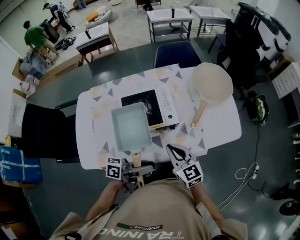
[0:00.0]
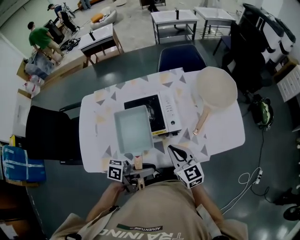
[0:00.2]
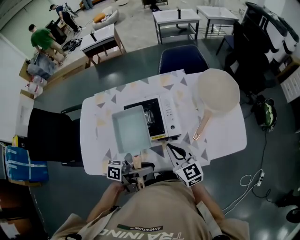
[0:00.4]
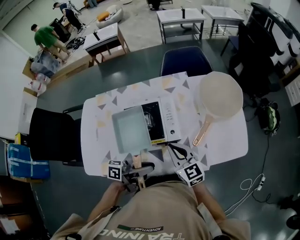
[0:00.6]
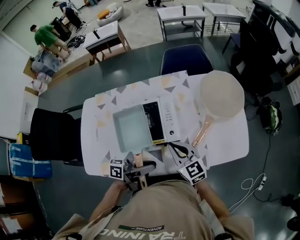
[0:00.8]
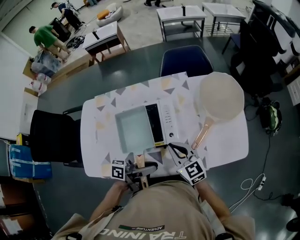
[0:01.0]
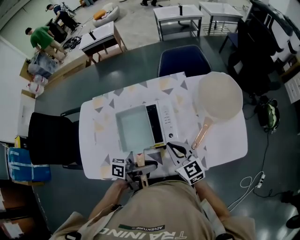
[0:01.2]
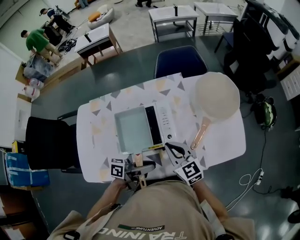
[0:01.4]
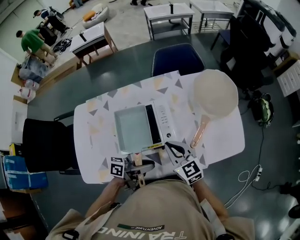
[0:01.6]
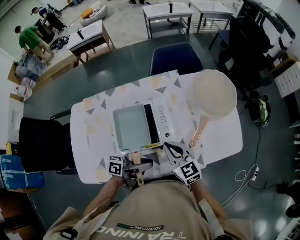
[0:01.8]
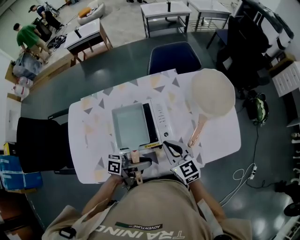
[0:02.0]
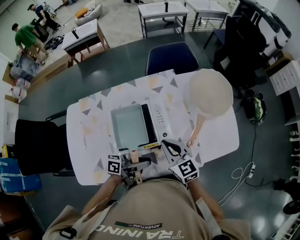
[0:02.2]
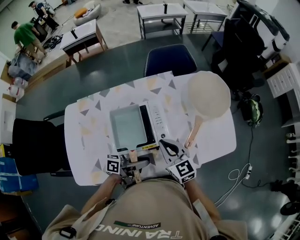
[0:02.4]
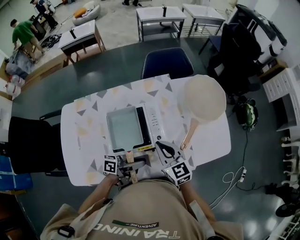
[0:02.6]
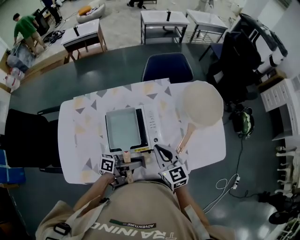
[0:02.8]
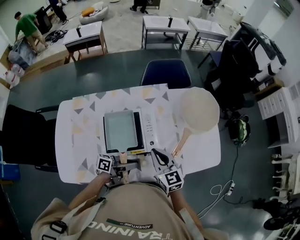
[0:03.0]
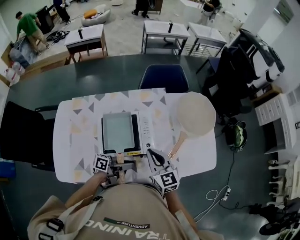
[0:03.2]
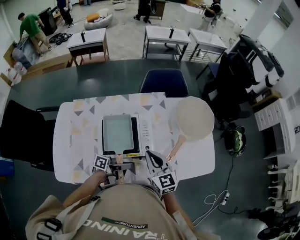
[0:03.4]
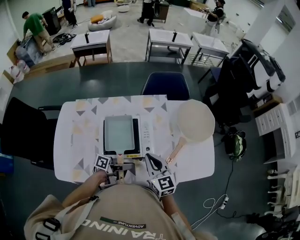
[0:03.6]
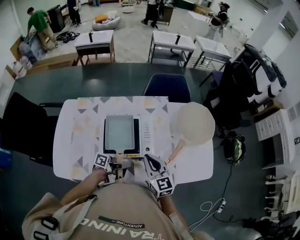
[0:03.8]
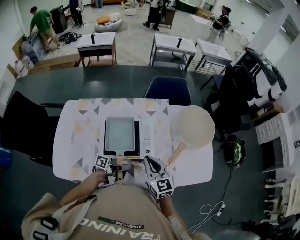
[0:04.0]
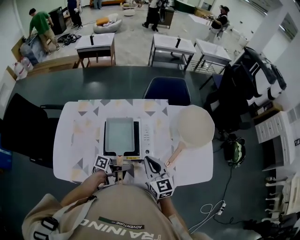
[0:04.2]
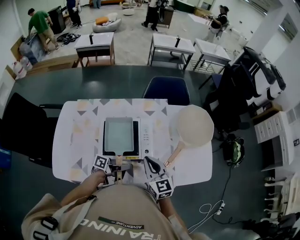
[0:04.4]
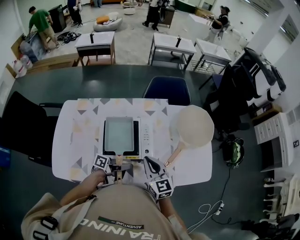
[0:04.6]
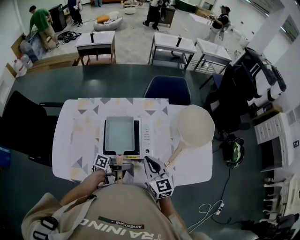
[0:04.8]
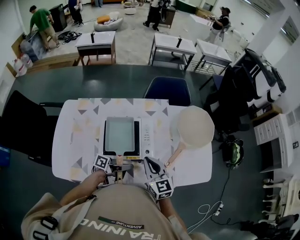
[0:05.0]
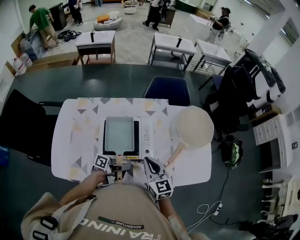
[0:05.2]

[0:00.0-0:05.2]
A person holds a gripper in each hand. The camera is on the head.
0:00.0 to 0:01.8: The right gripper changes place by about 10 cm.

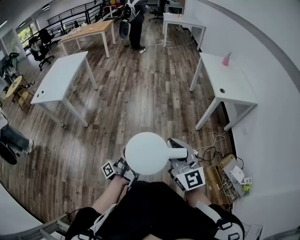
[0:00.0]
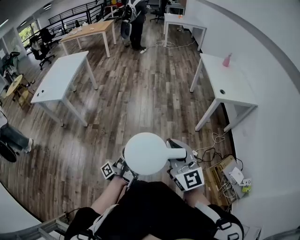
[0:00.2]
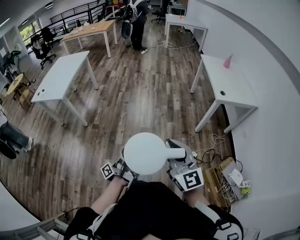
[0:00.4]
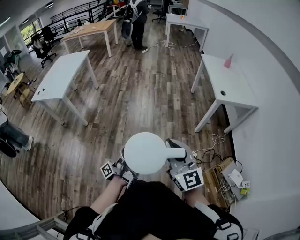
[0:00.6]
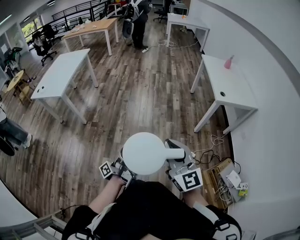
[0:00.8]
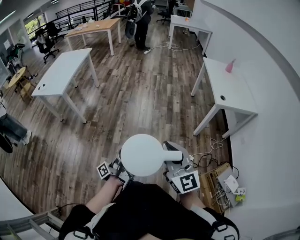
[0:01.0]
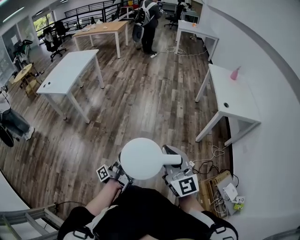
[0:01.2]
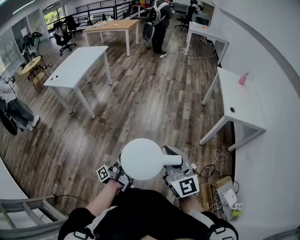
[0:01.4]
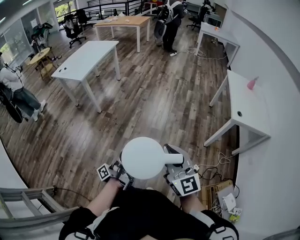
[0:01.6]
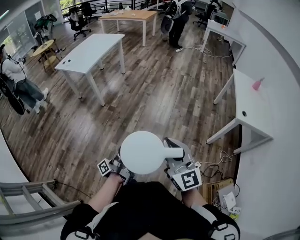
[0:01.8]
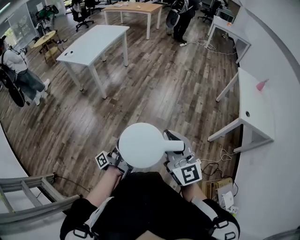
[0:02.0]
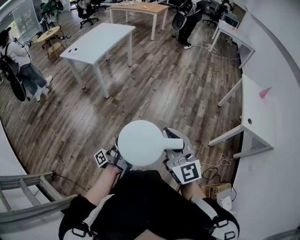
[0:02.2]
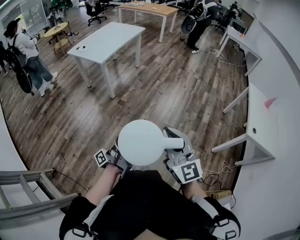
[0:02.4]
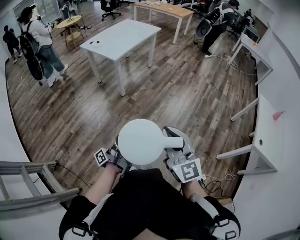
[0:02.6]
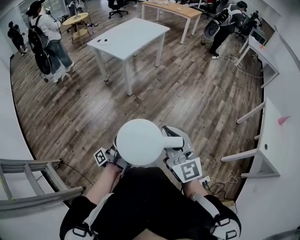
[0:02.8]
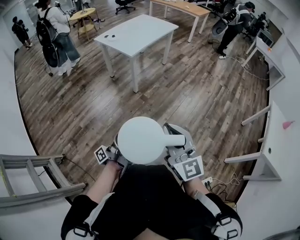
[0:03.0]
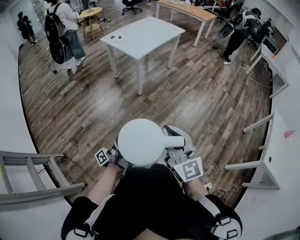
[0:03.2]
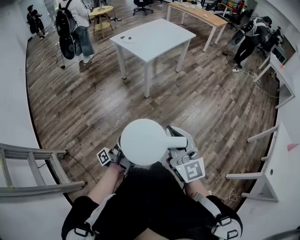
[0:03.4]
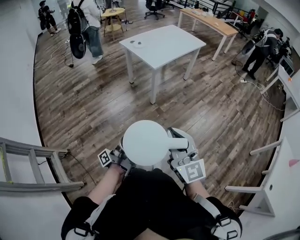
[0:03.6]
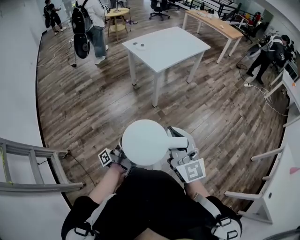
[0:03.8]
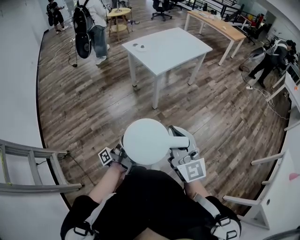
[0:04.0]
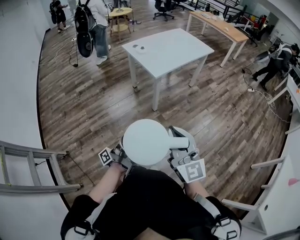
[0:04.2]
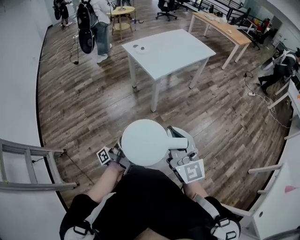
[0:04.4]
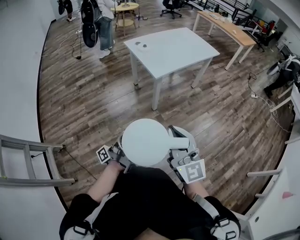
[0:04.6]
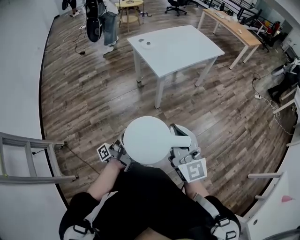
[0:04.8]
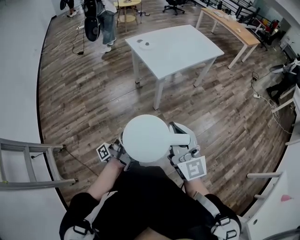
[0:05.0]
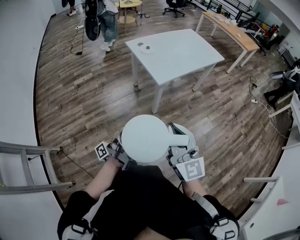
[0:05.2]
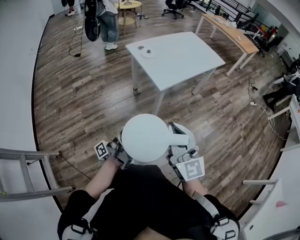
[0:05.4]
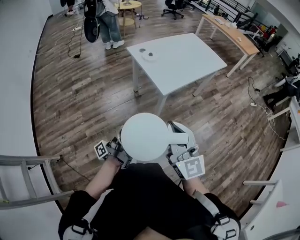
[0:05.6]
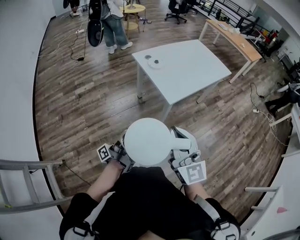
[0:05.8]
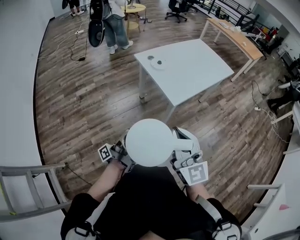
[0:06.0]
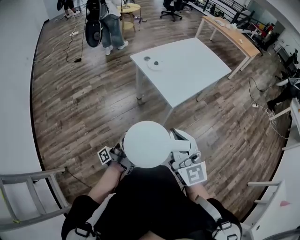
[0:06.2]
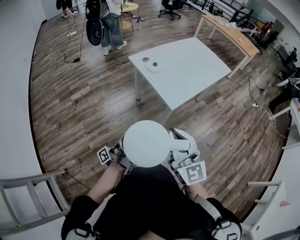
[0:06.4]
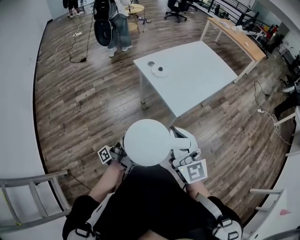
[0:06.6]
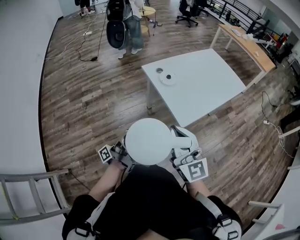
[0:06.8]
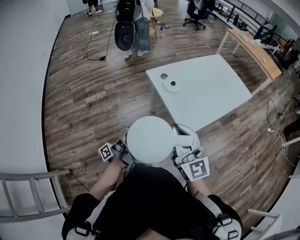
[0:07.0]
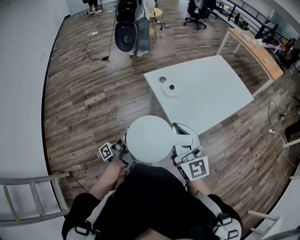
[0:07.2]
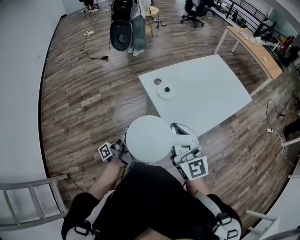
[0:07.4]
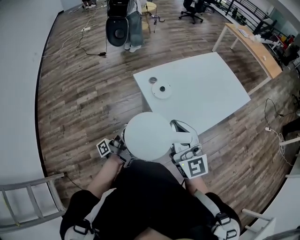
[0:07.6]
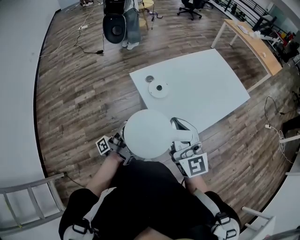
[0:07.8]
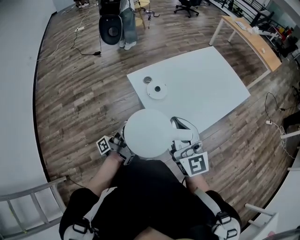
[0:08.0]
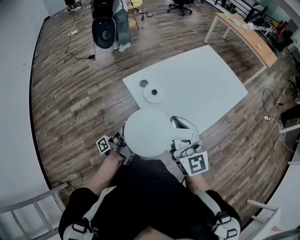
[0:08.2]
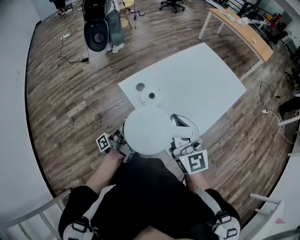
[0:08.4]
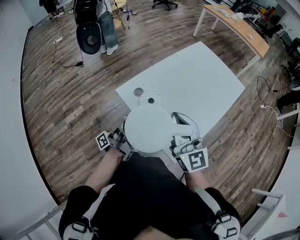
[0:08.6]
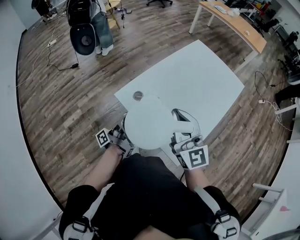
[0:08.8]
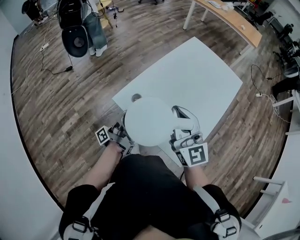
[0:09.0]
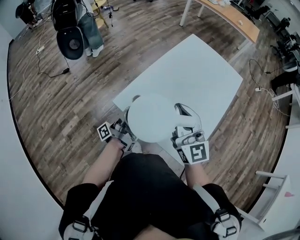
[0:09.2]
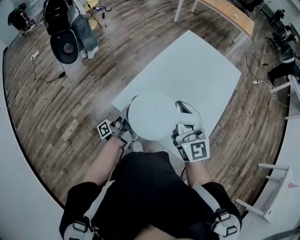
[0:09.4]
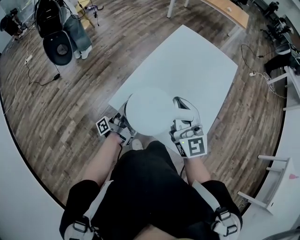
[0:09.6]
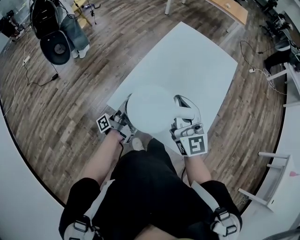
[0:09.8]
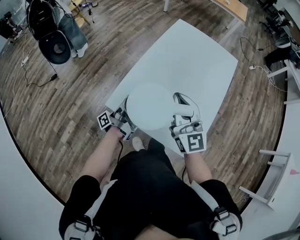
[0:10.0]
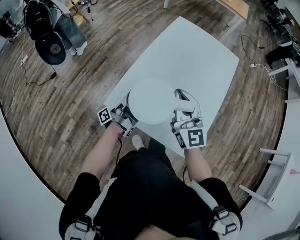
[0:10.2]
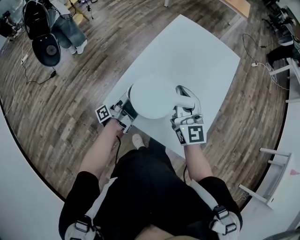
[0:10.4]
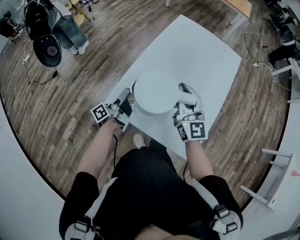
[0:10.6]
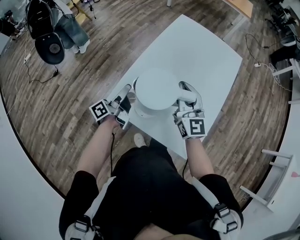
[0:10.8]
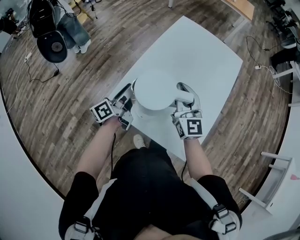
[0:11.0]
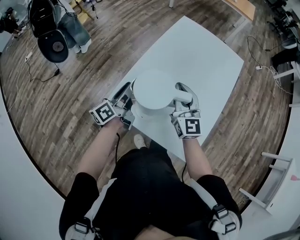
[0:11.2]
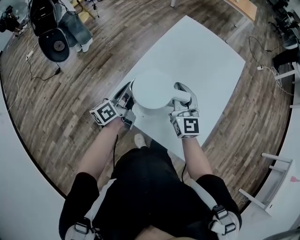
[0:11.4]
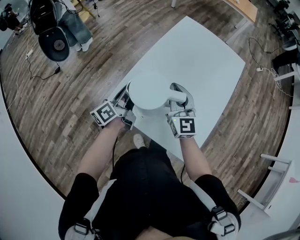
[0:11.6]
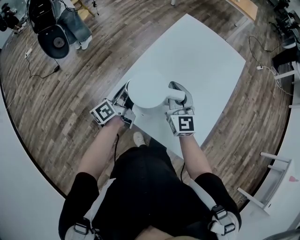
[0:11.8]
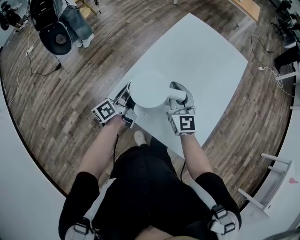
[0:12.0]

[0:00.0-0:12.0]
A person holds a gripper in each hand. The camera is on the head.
0:01.6 to 0:03.0: The right gripper changes place by roughly 30 cm, and turns by some 20 degrees.
0:03.0 to 0:04.4: The right gripper ends up about 25 cm from where it was.
0:04.4 to 0:06.0: The right gripper ends up about 25 cm from where it was.
0:06.0 to 0:07.6: The right gripper ends up approximately 30 cm from where it was.
0:07.6 to 0:09.0: The right gripper shifts by some 20 cm, and rotates approximately 20 degrees.
0:09.0 to 0:10.4: The right gripper moves roughly 15 cm.
0:10.4 to 0:12.0: The right gripper shifts roughly 10 cm downward.

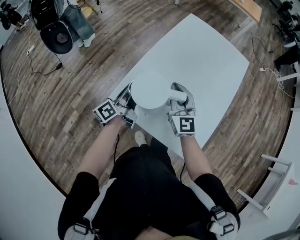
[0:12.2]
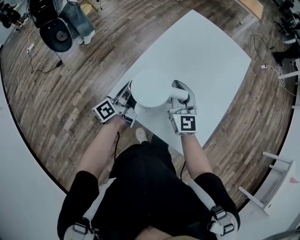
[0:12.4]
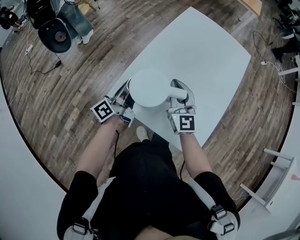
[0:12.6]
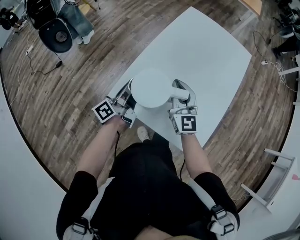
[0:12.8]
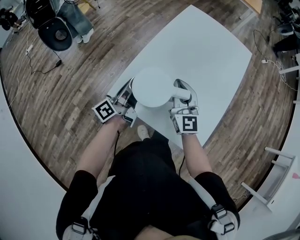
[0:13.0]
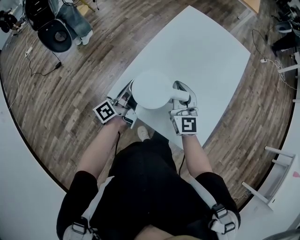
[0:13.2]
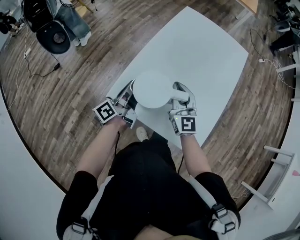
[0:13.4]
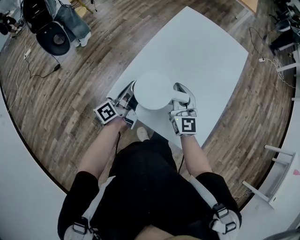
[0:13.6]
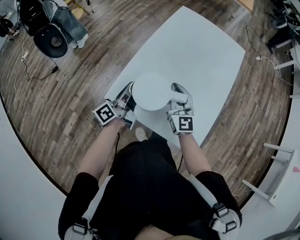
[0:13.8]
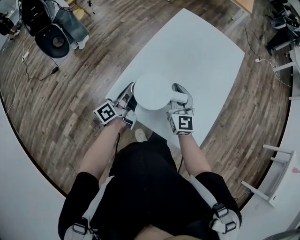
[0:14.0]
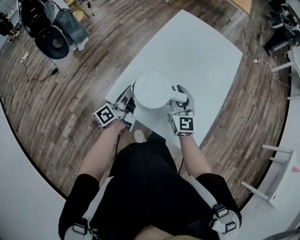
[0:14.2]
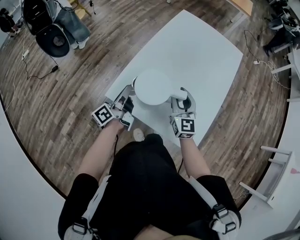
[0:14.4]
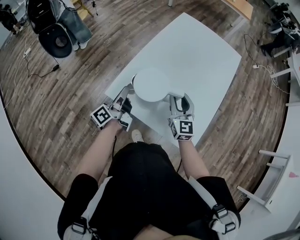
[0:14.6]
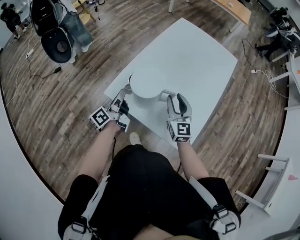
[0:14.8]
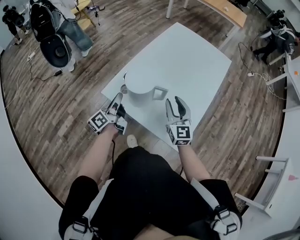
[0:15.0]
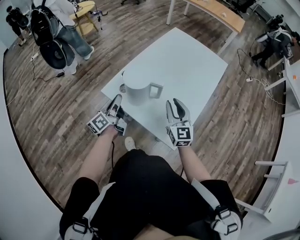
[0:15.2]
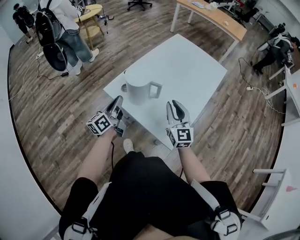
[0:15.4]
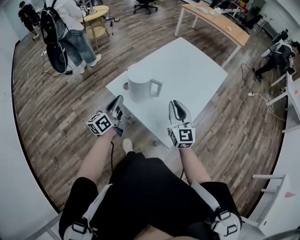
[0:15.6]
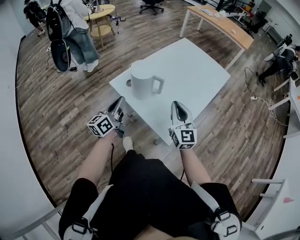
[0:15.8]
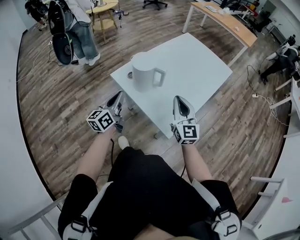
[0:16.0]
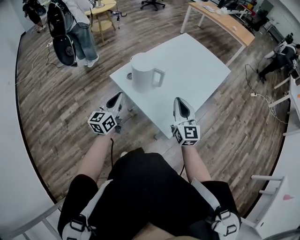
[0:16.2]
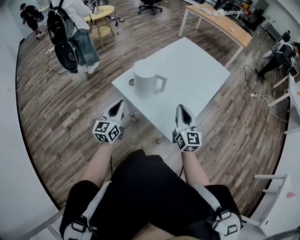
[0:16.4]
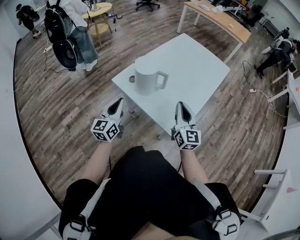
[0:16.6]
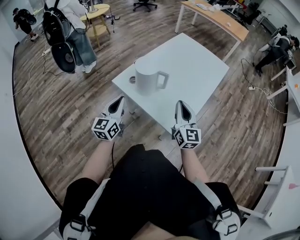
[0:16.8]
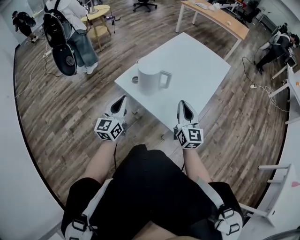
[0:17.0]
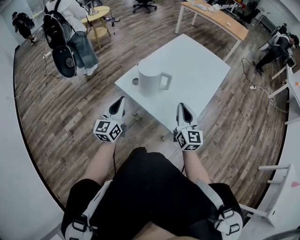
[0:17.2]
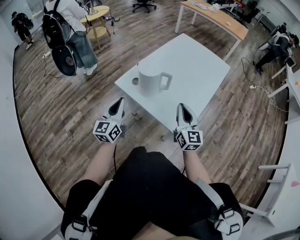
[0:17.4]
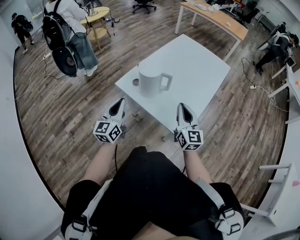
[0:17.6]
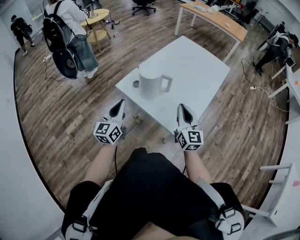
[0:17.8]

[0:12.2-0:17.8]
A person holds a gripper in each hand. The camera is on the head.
0:13.6 to 0:15.0: The right gripper ends up approximately 10 cm from where it was, and opens.
0:15.0 to 0:16.4: The right gripper changes place by roughly 15 cm, and closes its fingers.

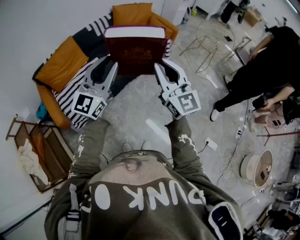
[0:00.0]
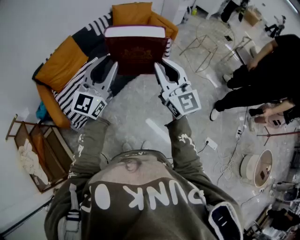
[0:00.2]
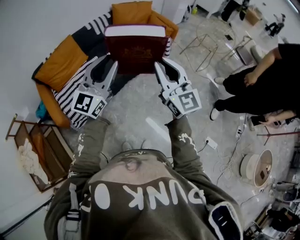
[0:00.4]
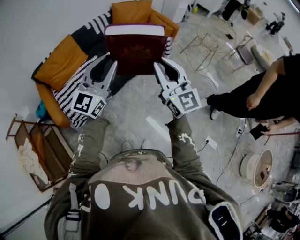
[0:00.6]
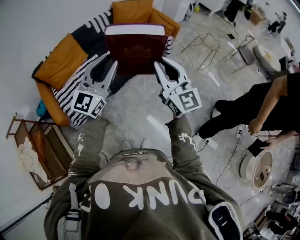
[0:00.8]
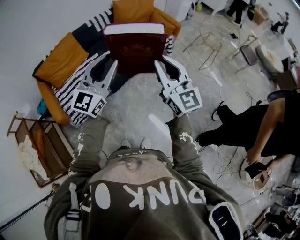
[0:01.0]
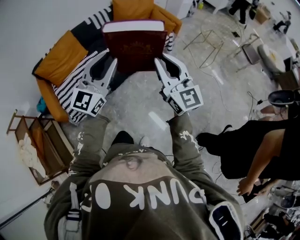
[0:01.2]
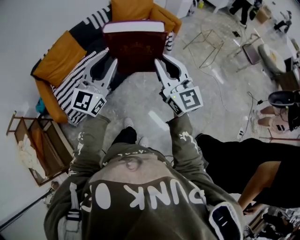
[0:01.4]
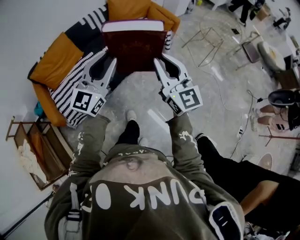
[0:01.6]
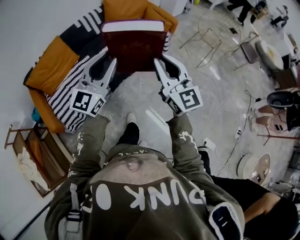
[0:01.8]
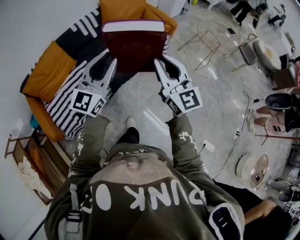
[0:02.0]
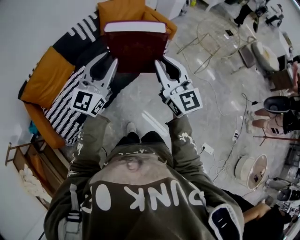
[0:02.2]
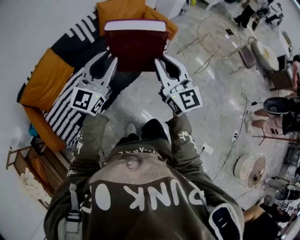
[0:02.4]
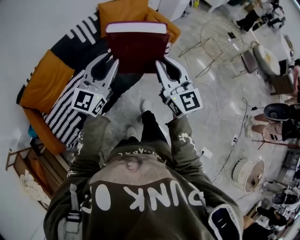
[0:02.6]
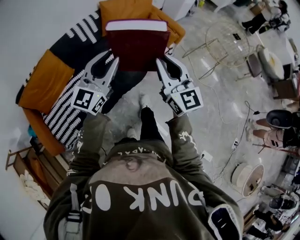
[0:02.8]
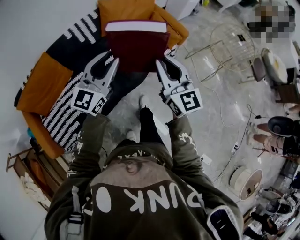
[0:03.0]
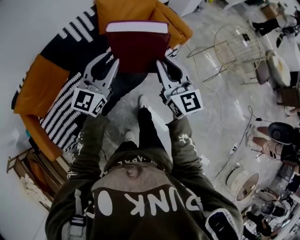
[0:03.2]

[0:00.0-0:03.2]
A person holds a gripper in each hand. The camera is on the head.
0:00.0 to 0:01.6: The grippers both shift forward and to the right by approximately 10 cm.
0:01.6 to 0:03.2: The pair of grippers is taken forward, about 40 cm.
